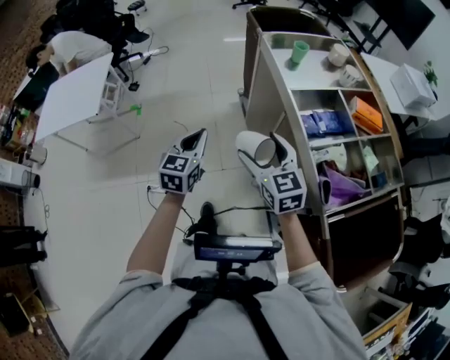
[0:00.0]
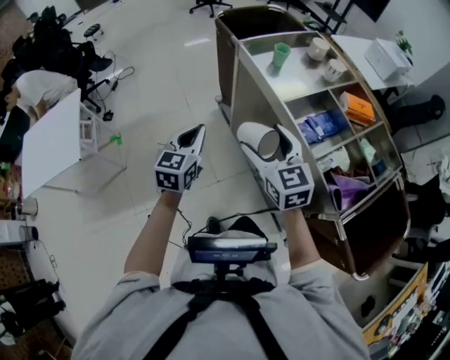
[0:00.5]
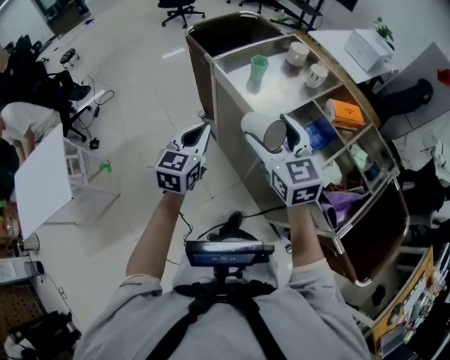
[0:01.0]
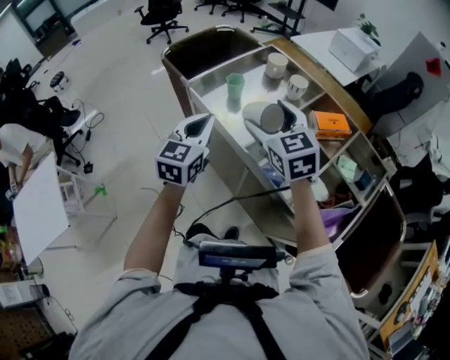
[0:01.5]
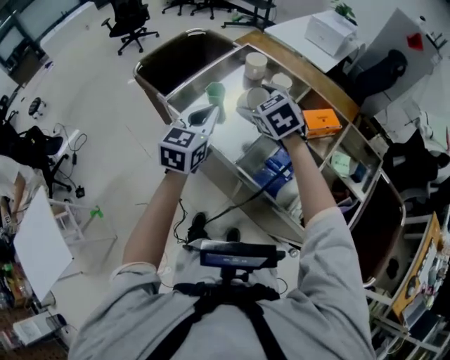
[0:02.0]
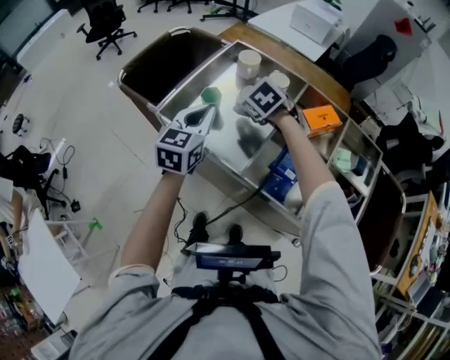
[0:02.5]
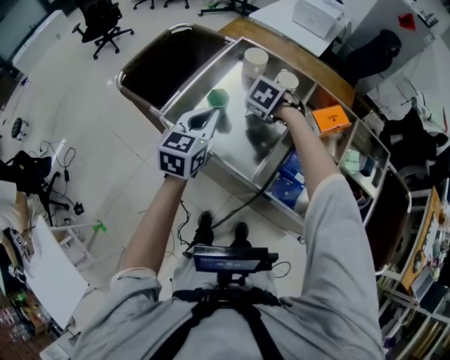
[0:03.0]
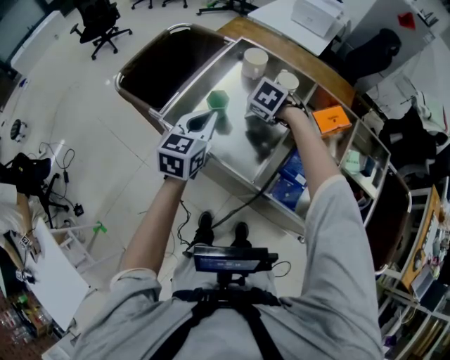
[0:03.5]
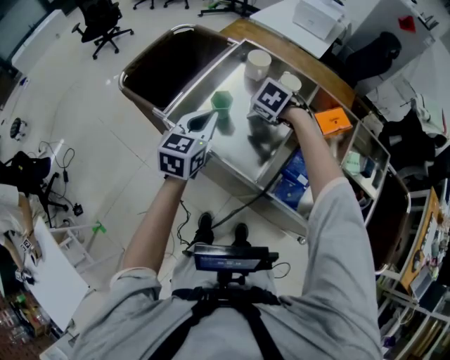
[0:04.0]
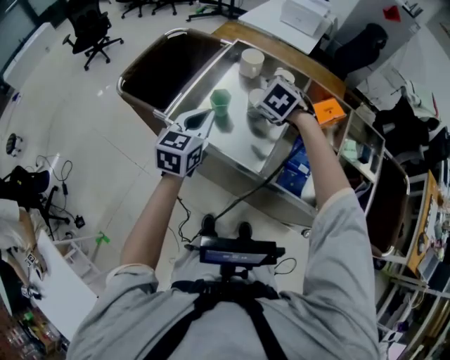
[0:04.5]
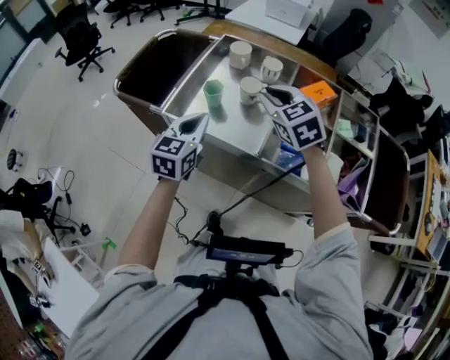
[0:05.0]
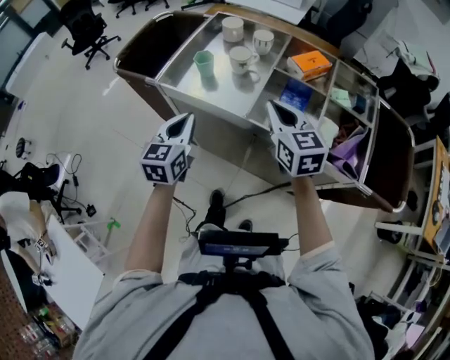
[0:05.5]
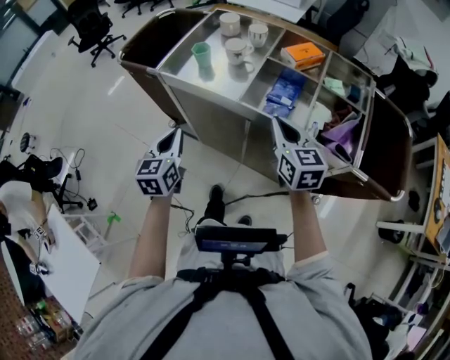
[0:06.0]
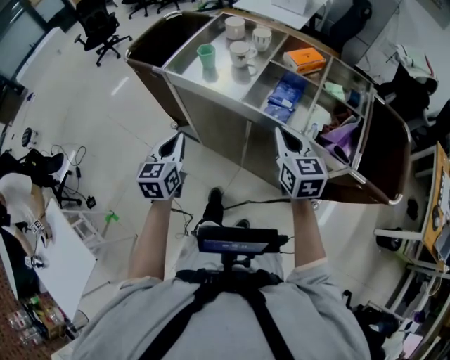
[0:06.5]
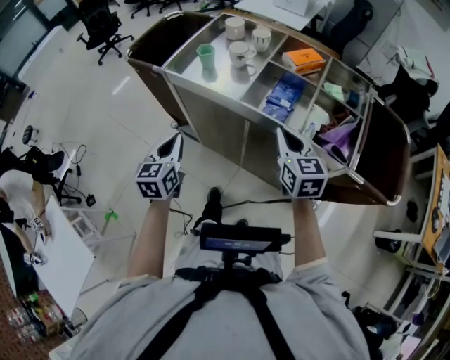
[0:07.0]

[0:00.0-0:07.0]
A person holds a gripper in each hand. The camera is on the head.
0:00.0 to 0:02.0: The pair of grippers is taken some 40 cm. The left gripper swivels about 40 degrees. Meanwhile the right gripper rotates approximately 30 degrees.
0:02.0 to 0:03.5: The right gripper travels downward and forward by some 15 cm, and tips its fingers downward by some 30 degrees. Meanwhile the left gripper heads forward and downward, covering approximately 10 cm.
0:03.5 to 0:05.0: The right gripper shifts about 20 cm upward and backward, tilts its fingers some 40 degrees upward, and closes its fingers. Meanwhile the left gripper travels backward by about 5 cm.
0:05.0 to 0:07.0: The left gripper travels backward by approximately 20 cm; the right gripper travels backward and to the right by some 25 cm, and turns by some 30 degrees.

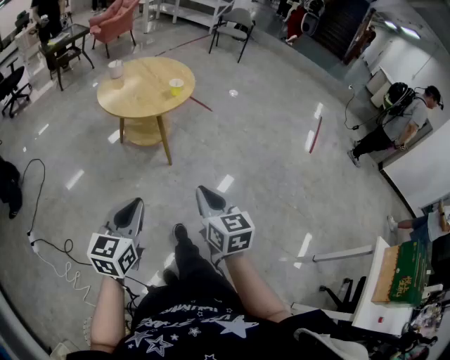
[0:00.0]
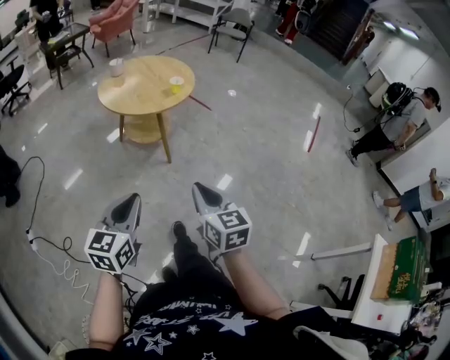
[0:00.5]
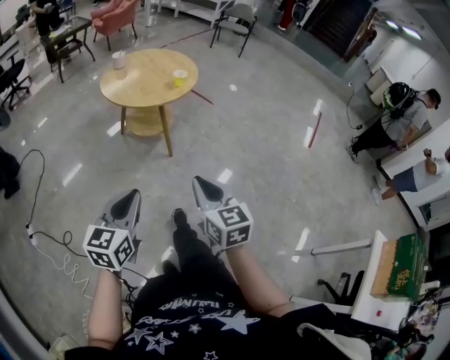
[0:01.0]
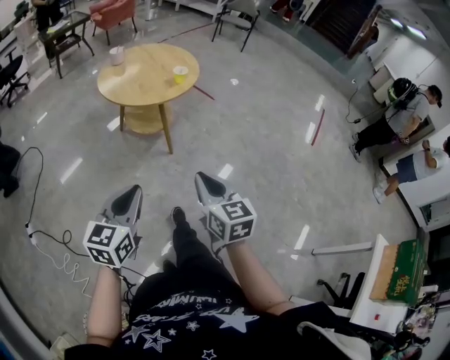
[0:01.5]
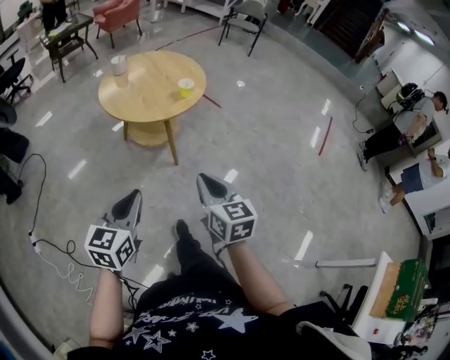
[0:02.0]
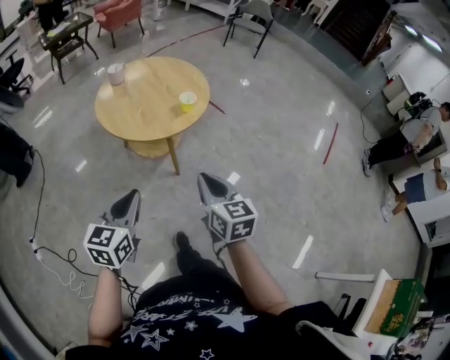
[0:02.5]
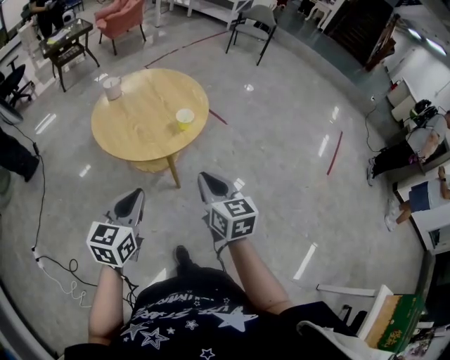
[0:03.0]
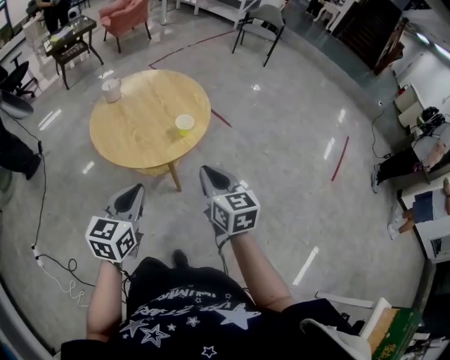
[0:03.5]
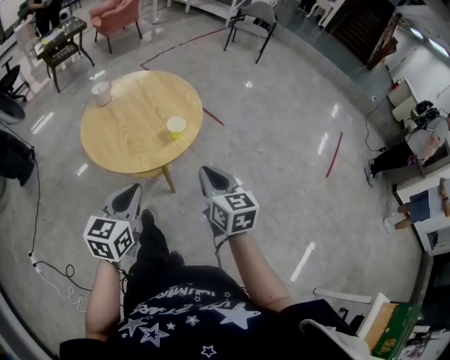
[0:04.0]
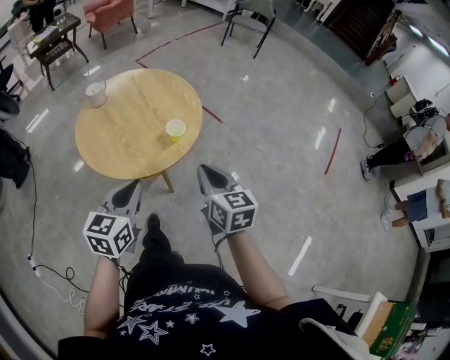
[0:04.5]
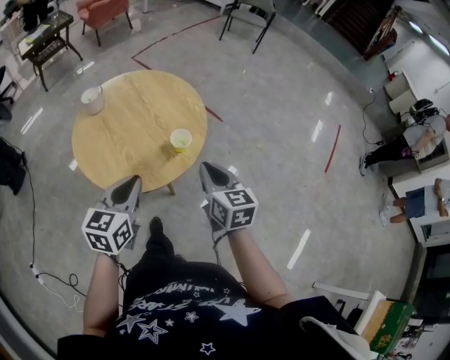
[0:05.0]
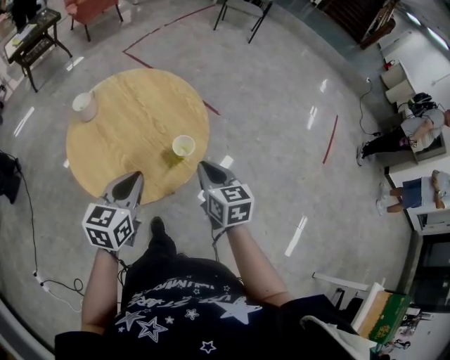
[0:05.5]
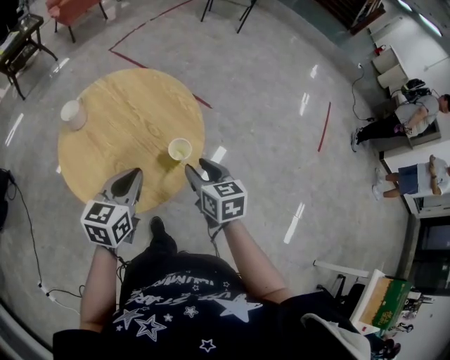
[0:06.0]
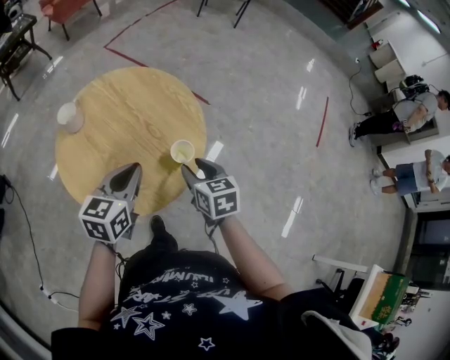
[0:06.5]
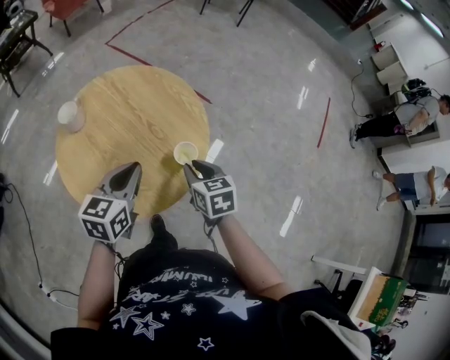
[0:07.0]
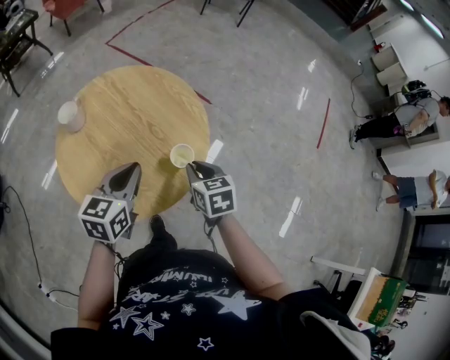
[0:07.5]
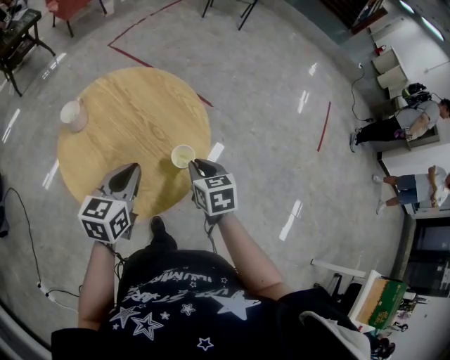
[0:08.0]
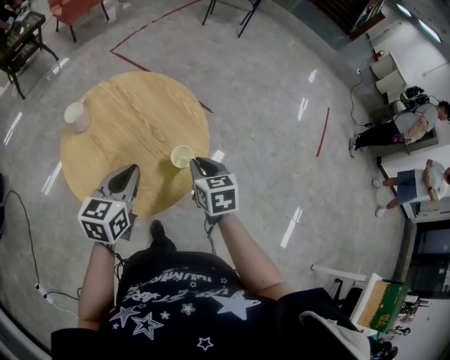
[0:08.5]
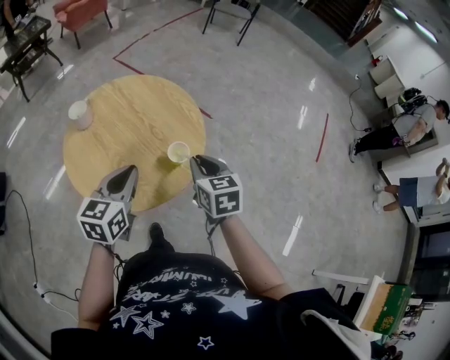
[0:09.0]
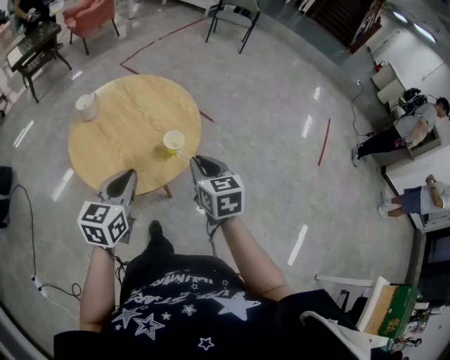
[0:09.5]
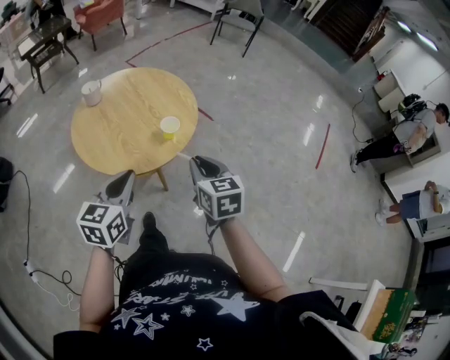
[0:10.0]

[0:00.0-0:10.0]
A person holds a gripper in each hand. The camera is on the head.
0:00.0 to 0:02.0: Both grippers move forward, about 10 cm.
0:02.0 to 0:04.0: The grippers both shift forward by roughly 25 cm.
0:04.0 to 0:06.0: The right gripper goes about 20 cm forward, downward and to the left, and opens up; the left gripper goes some 20 cm forward.
0:06.0 to 0:08.0: The right gripper moves approximately 5 cm, and closes up.
0:08.0 to 0:10.0: The left gripper moves backward, some 20 cm. Meanwhile the right gripper travels backward and upward by approximately 20 cm.

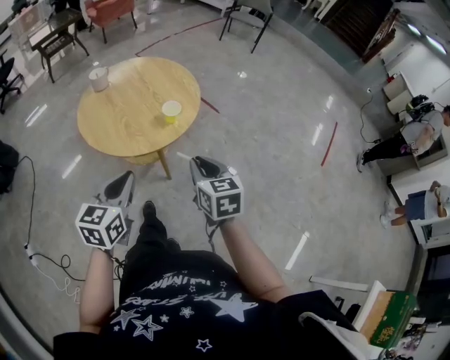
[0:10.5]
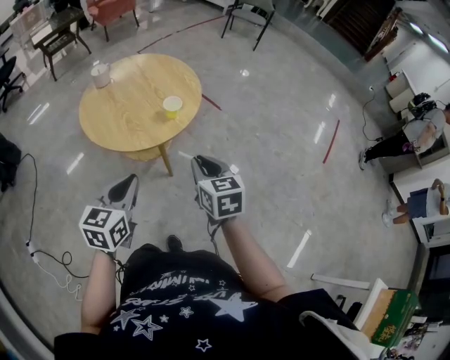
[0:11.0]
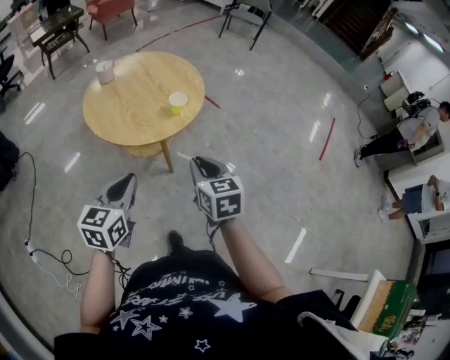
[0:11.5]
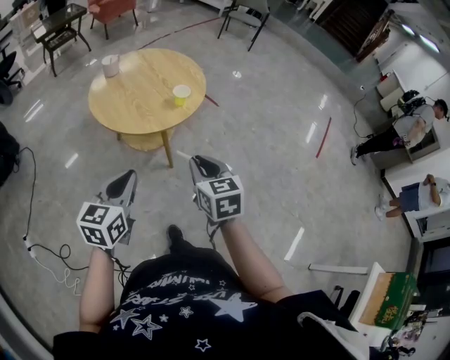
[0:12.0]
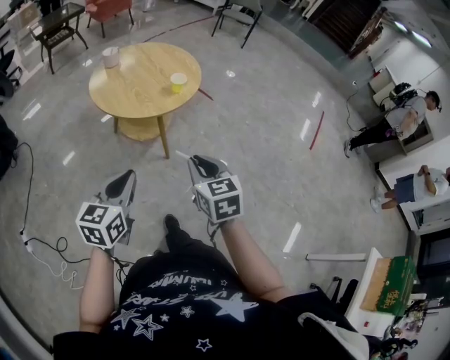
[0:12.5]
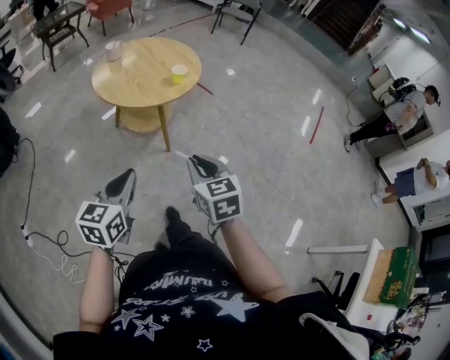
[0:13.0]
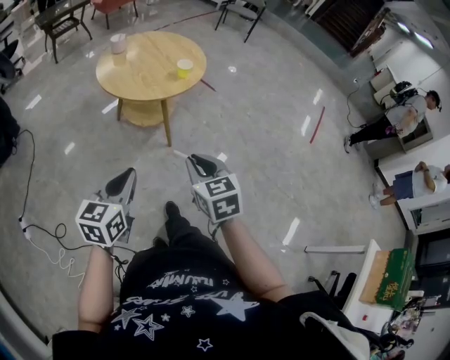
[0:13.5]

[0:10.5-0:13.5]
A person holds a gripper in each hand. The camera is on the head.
0:10.5 to 0:12.0: The two grippers go some 10 cm backward.
0:12.0 to 0:13.5: The grippers both shift backward by some 15 cm.

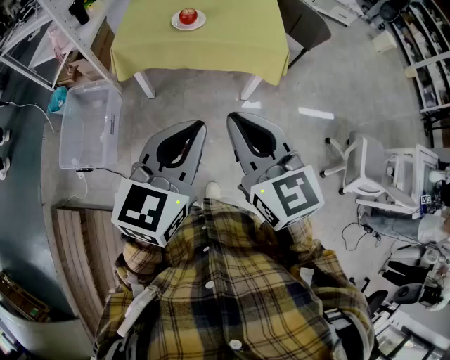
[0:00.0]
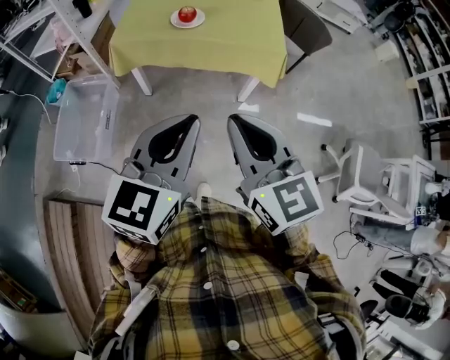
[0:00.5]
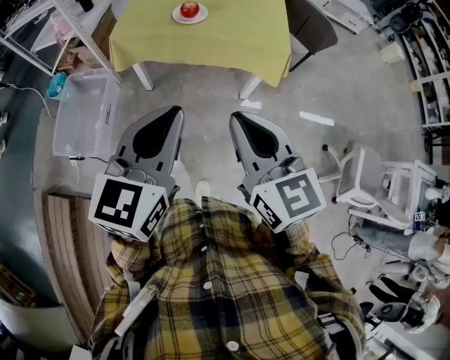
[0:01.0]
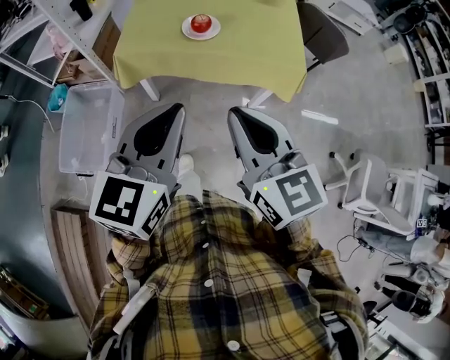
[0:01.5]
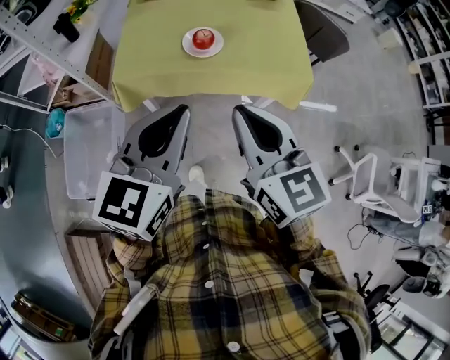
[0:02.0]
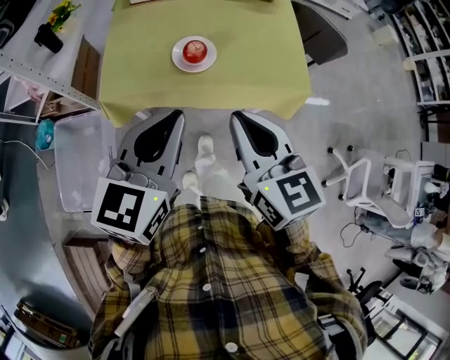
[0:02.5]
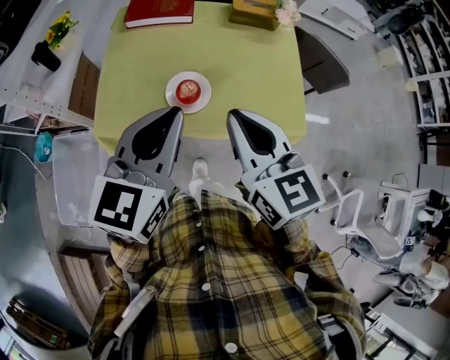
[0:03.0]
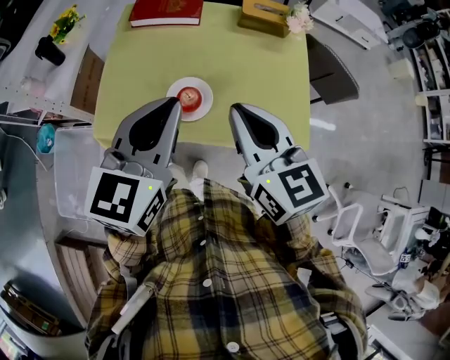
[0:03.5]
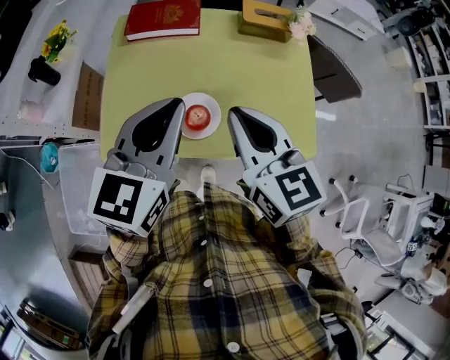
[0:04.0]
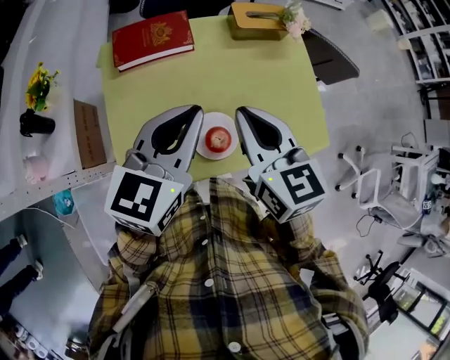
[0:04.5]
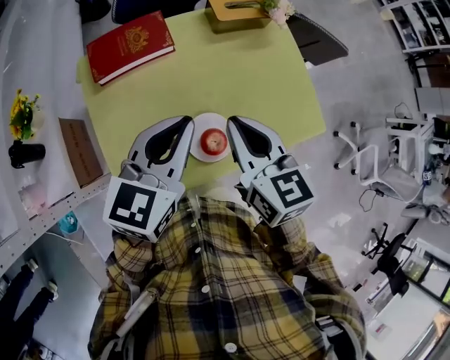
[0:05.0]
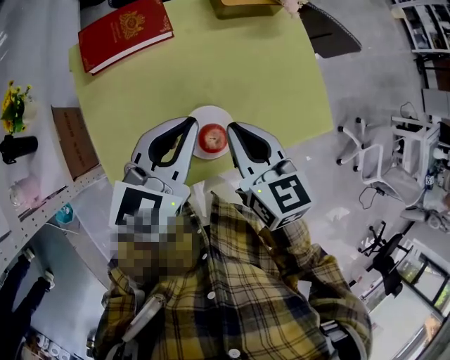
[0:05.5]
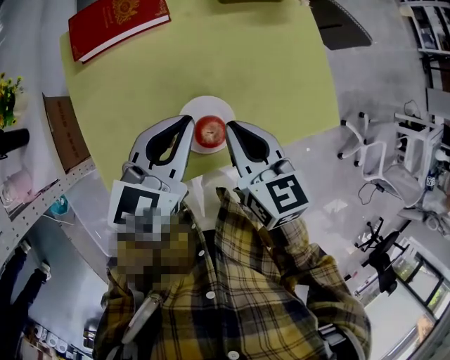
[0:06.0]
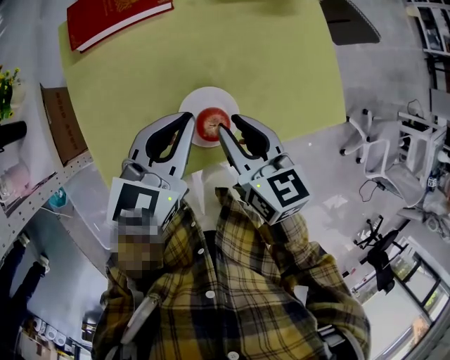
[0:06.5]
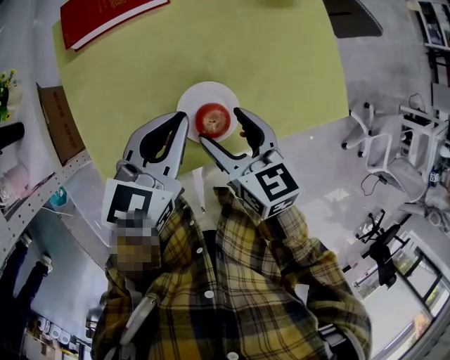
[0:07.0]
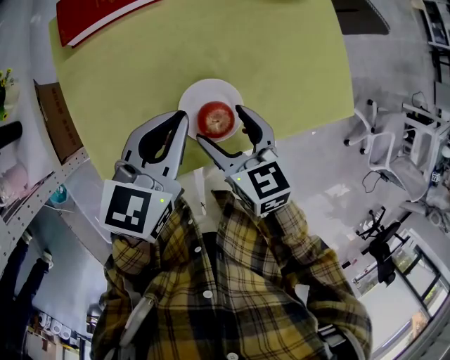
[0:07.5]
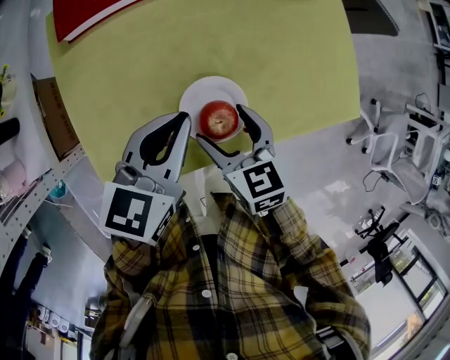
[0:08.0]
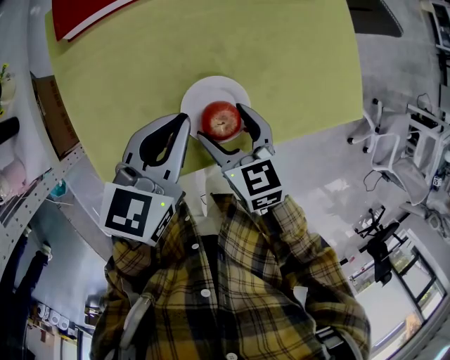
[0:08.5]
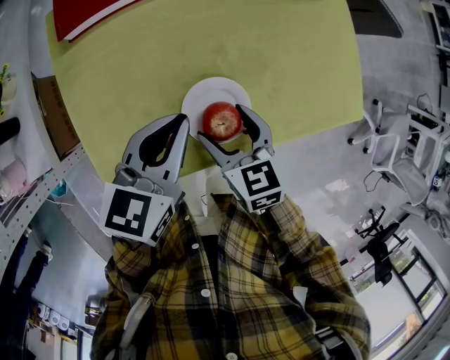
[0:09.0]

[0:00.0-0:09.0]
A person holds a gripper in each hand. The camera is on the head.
0:00.0 to 0:02.0: The right gripper is displaced forward by some 25 cm. Meanwhile the left gripper moves forward and to the left, about 25 cm.
0:02.0 to 0:04.5: The two grippers travel together, forward, some 40 cm.
0:04.5 to 0:07.0: The grippers both shift downward by some 20 cm. The right gripper opens its fingers.
0:07.0 to 0:09.0: The right gripper goes some 10 cm downward.
